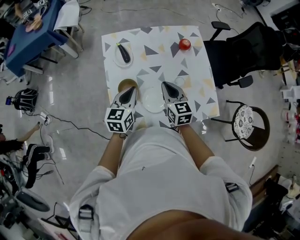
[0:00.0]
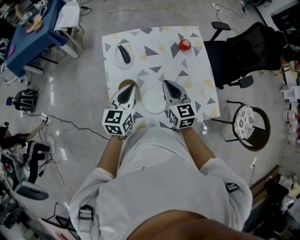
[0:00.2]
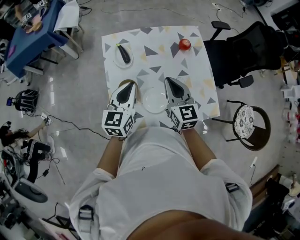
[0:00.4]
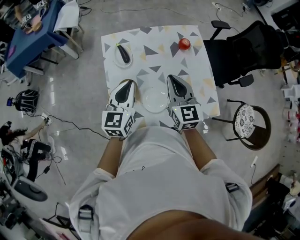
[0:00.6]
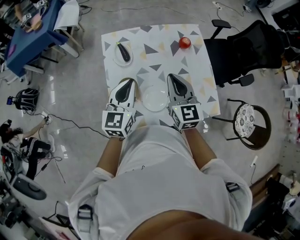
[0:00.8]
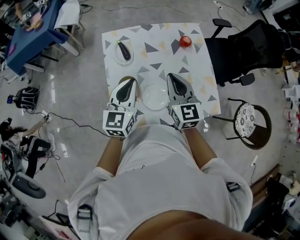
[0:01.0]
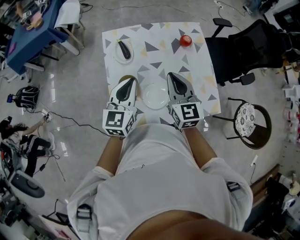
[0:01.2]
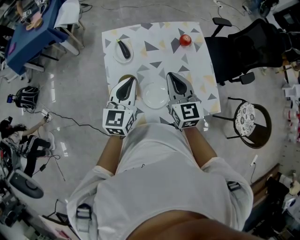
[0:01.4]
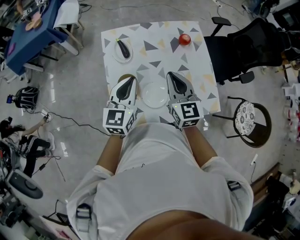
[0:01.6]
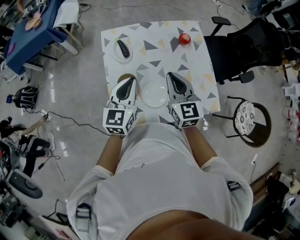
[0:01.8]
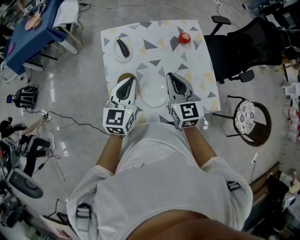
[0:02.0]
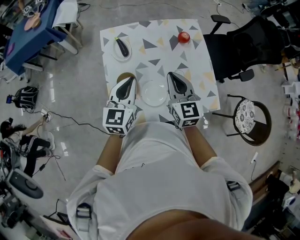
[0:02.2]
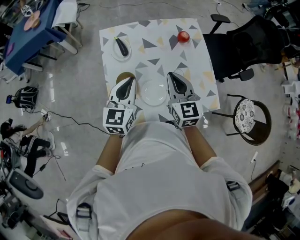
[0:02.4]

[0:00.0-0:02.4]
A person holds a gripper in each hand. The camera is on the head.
0:00.0 to 0:01.2: The two grippers go approximately 10 cm upward.
0:01.2 to 0:02.4: There are only small adjustments of the grippers.

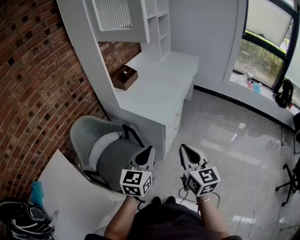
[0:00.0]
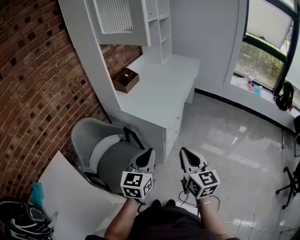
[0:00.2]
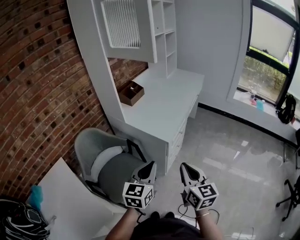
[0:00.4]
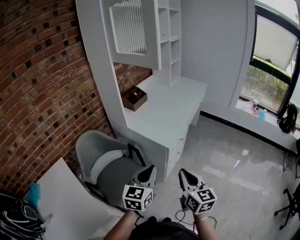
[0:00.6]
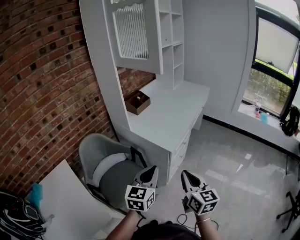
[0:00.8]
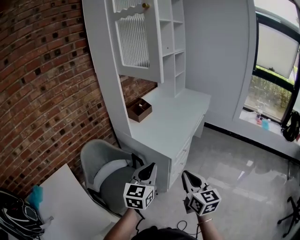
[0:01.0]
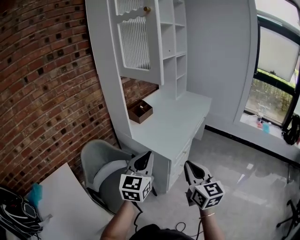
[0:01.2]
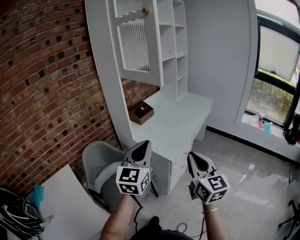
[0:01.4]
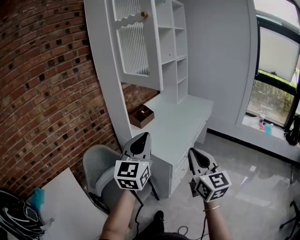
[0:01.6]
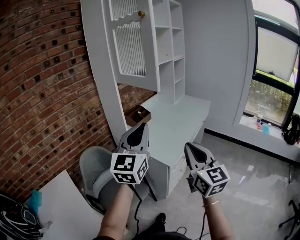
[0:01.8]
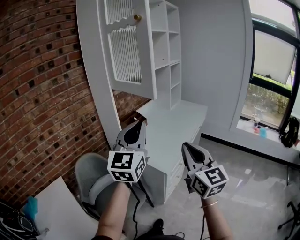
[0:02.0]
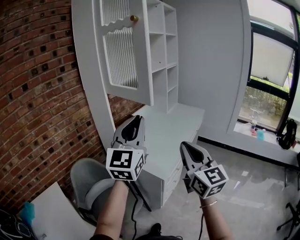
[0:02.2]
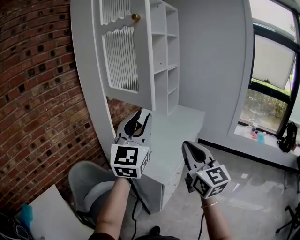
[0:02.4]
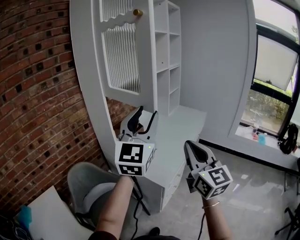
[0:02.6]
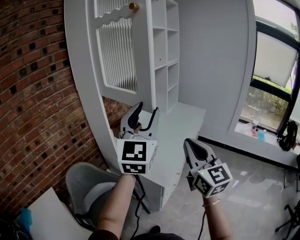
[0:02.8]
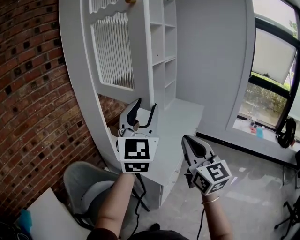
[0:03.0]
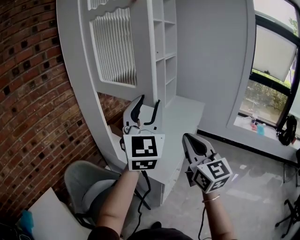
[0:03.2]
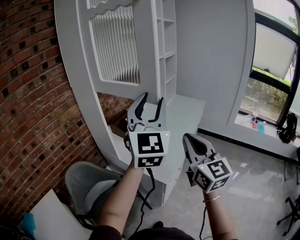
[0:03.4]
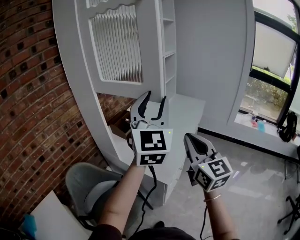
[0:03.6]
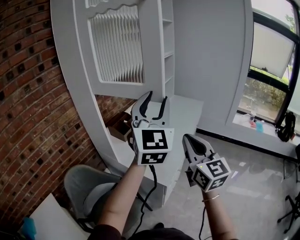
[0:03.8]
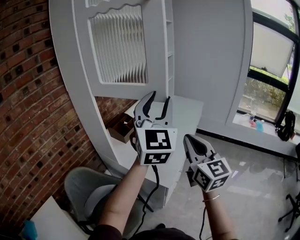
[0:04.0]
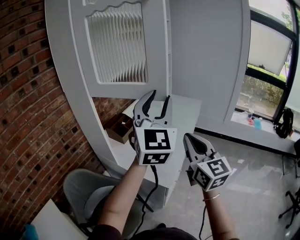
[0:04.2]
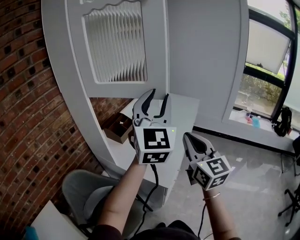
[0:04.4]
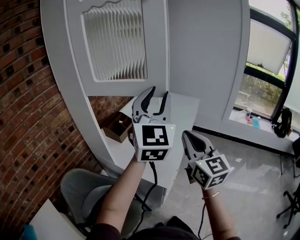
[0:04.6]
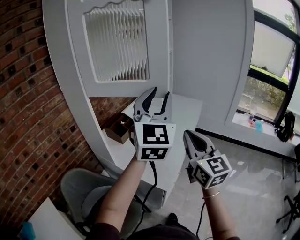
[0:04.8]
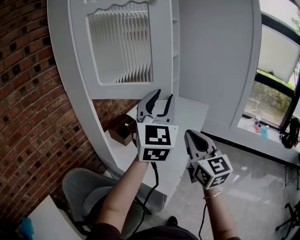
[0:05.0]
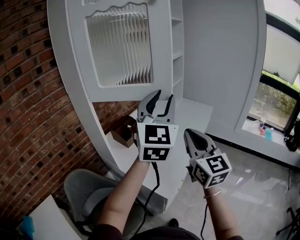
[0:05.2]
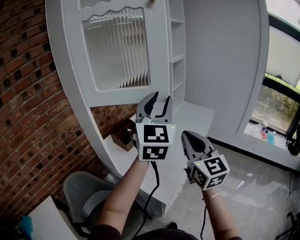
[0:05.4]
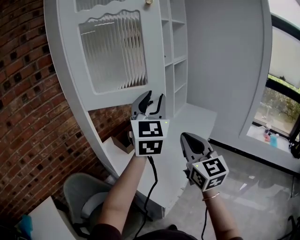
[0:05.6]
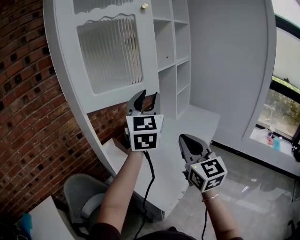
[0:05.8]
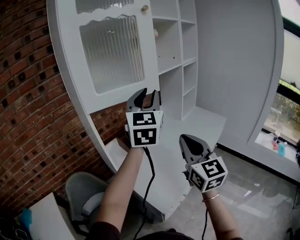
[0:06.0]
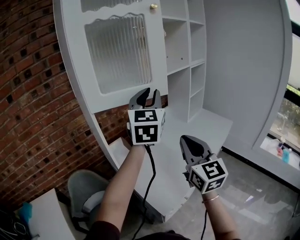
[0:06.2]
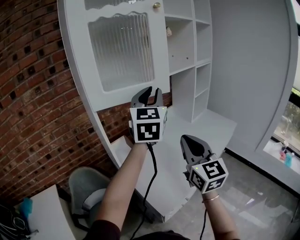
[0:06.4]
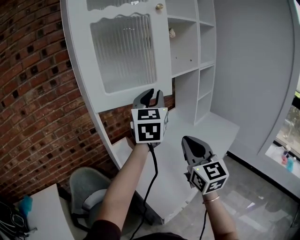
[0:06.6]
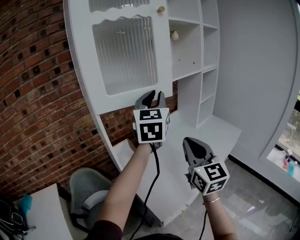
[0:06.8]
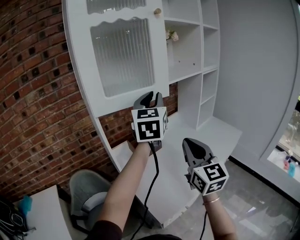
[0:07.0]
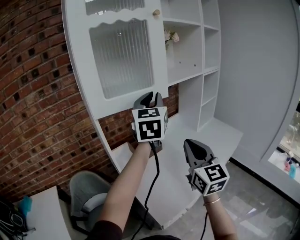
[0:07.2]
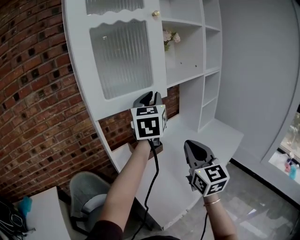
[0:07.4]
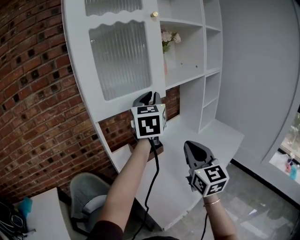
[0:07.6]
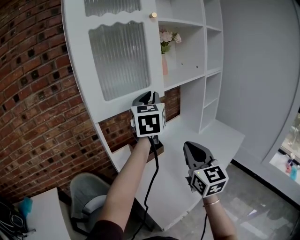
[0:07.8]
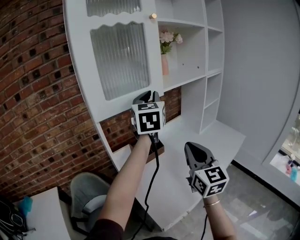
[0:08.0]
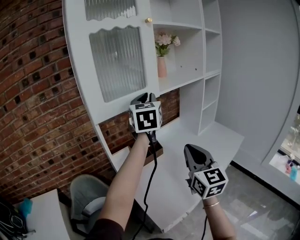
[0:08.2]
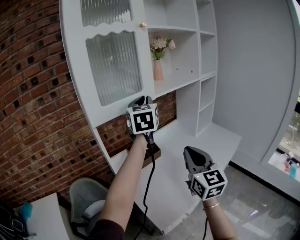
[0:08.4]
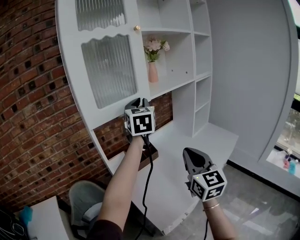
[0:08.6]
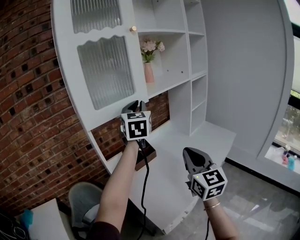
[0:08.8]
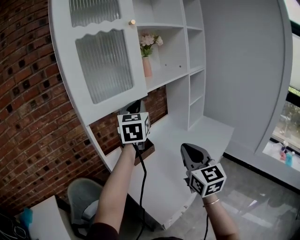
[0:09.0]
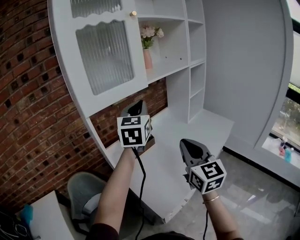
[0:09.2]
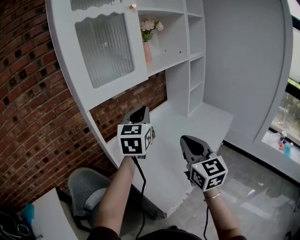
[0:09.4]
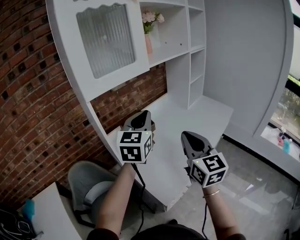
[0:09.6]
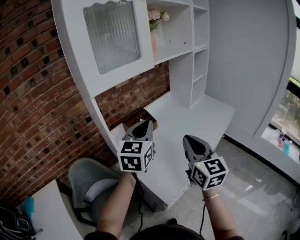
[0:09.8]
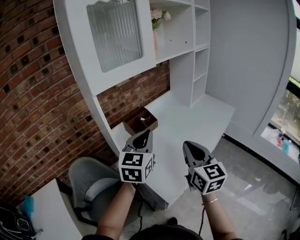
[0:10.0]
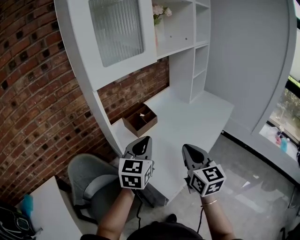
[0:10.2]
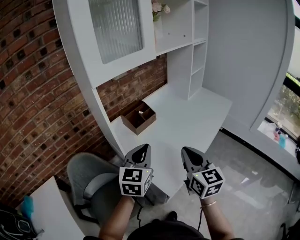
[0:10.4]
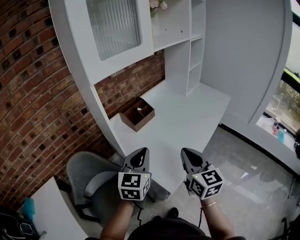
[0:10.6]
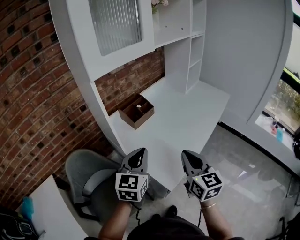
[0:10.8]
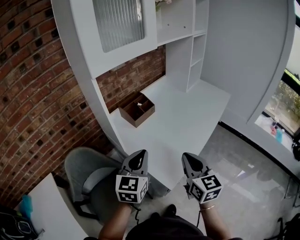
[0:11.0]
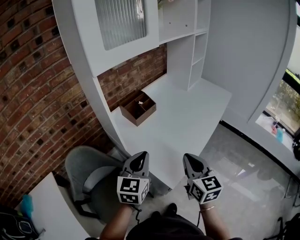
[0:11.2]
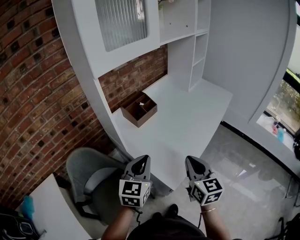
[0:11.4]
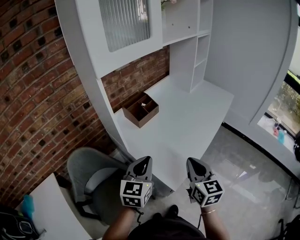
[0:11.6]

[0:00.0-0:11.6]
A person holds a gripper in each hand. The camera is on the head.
0:00.0 to 0:01.4: The grippers both shift upward by about 15 cm. The left gripper rotates some 20 degrees.
0:01.4 to 0:02.8: The grippers both shift forward and upward by approximately 20 cm. The left gripper opens its fingers.
0:02.8 to 0:04.4: Both grippers move forward, some 5 cm.
0:04.4 to 0:05.8: Both grippers travel together forward, approximately 15 cm.
0:05.8 to 0:07.2: The two grippers go some 10 cm forward.
0:07.2 to 0:08.8: The grippers stay close to where they were, moving slightly.
0:08.8 to 0:10.2: The left gripper moves downward and backward, some 30 cm, and swivels some 20 degrees. Meanwhile the right gripper moves downward, backward and to the left, approximately 15 cm.
0:10.2 to 0:11.6: Both grippers travel together downward and backward, roughly 10 cm.

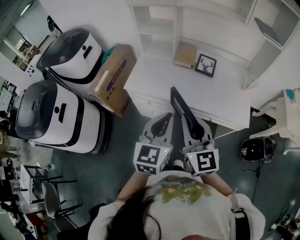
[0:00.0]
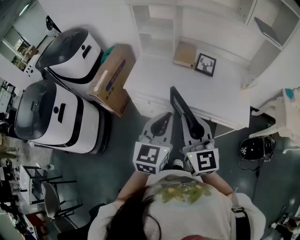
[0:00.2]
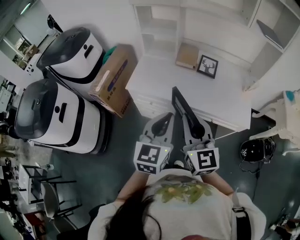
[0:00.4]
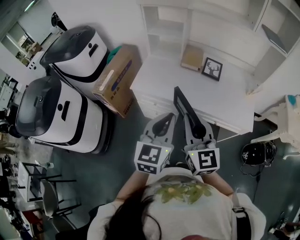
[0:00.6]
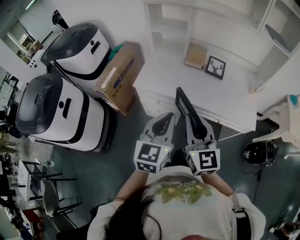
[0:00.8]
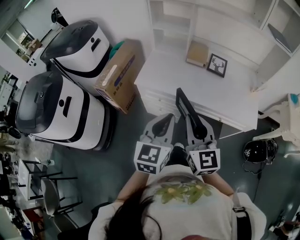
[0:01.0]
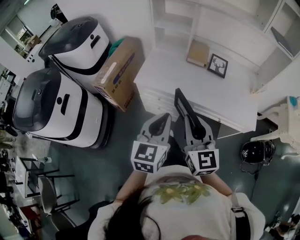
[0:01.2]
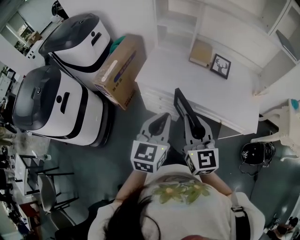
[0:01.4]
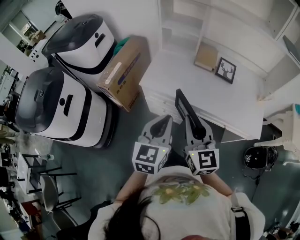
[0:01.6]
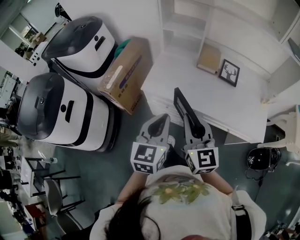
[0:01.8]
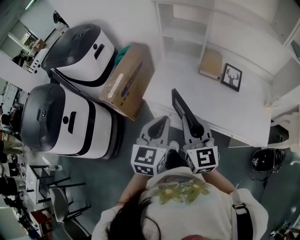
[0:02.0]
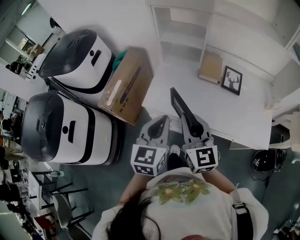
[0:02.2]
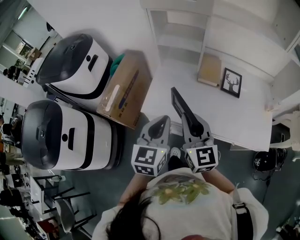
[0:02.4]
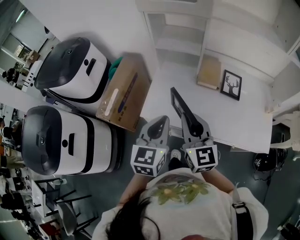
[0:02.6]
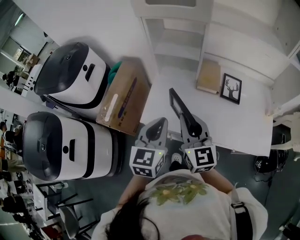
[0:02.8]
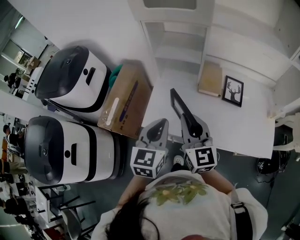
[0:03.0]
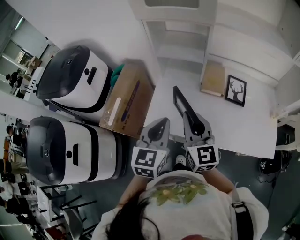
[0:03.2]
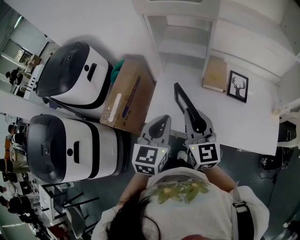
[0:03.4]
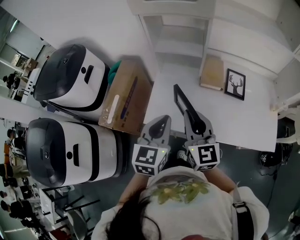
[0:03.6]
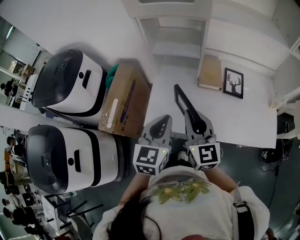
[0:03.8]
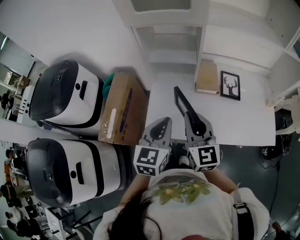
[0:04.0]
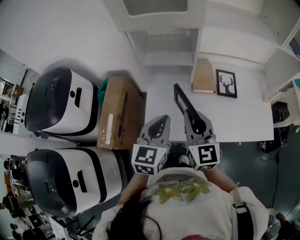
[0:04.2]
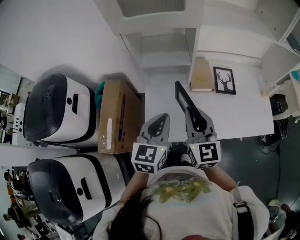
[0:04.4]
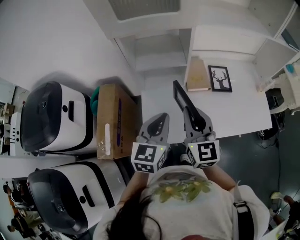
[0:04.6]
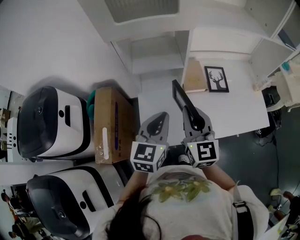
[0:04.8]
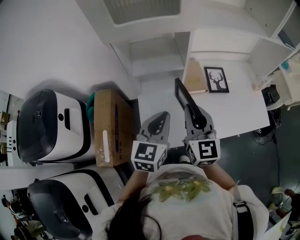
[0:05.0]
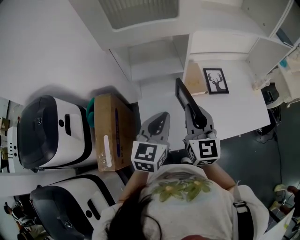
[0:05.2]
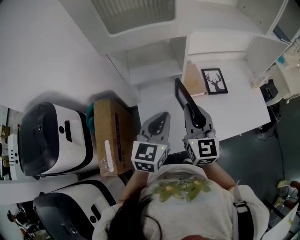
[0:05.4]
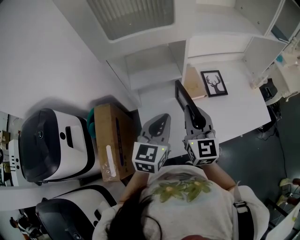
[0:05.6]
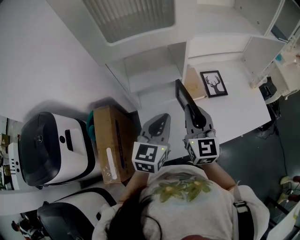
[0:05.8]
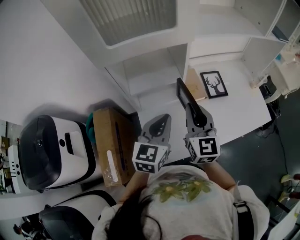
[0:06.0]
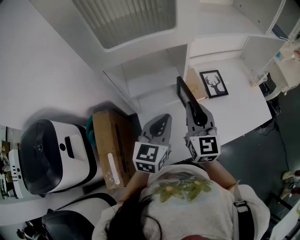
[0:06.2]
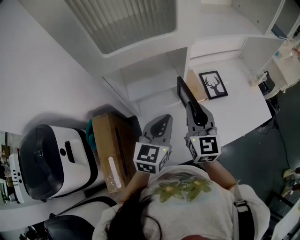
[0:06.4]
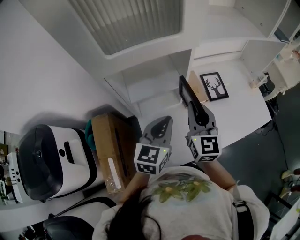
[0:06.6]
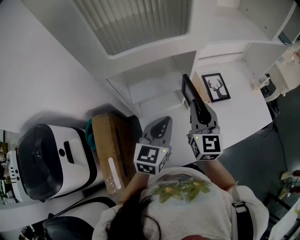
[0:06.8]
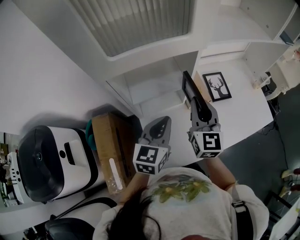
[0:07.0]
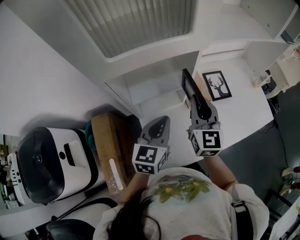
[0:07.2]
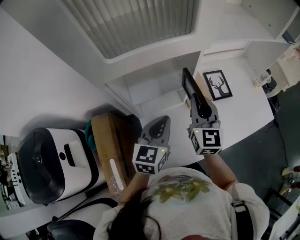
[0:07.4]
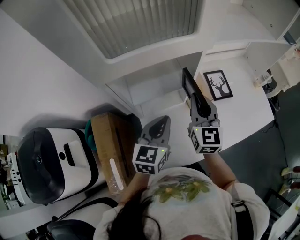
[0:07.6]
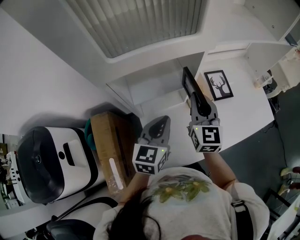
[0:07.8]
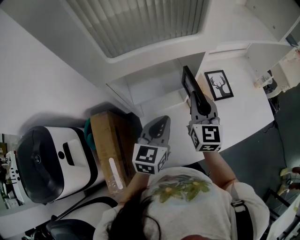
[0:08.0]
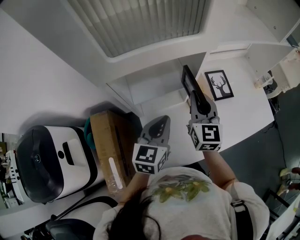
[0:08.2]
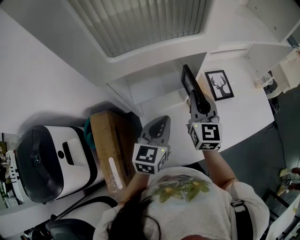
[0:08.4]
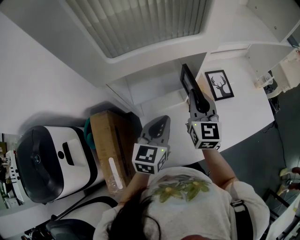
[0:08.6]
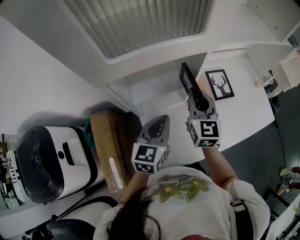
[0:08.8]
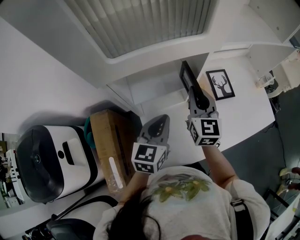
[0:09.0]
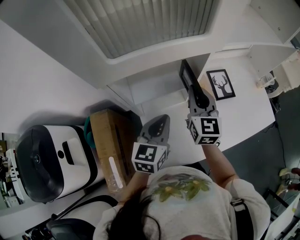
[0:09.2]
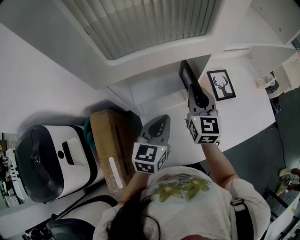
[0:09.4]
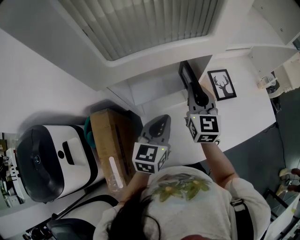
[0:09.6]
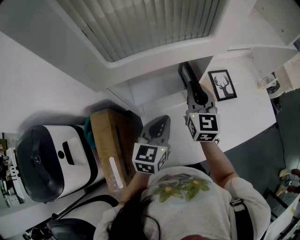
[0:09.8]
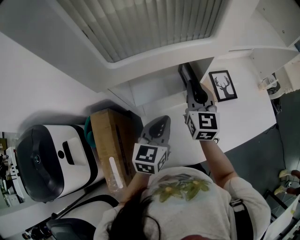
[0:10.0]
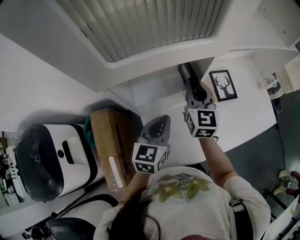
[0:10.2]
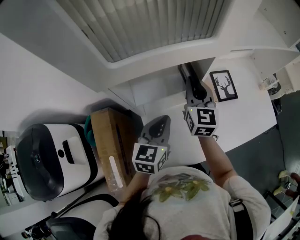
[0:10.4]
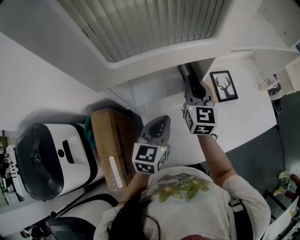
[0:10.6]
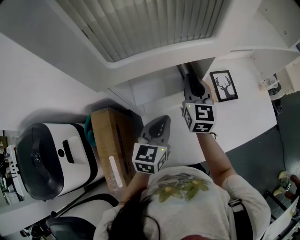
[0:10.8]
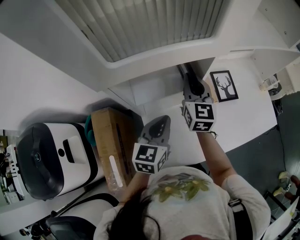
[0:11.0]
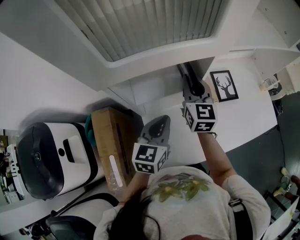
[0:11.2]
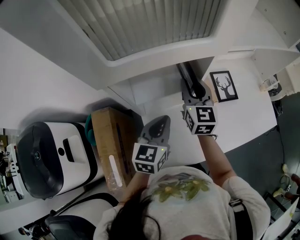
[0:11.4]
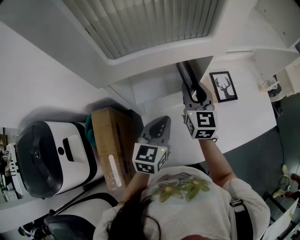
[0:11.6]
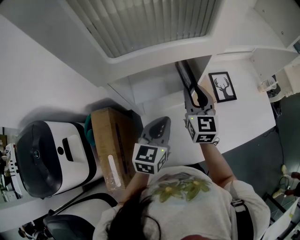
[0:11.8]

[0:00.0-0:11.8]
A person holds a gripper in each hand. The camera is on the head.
0:00.0 to 0:01.4: The left gripper moves to the left, roughly 10 cm, while the right gripper moves to the left and downward, roughly 10 cm.
0:01.4 to 0:03.0: The two grippers go about 30 cm forward.
0:03.0 to 0:04.4: Both grippers travel together forward, some 10 cm.
0:04.4 to 0:06.0: The two grippers go roughly 10 cm forward.
0:06.0 to 0:07.4: The left gripper is displaced forward by about 5 cm. Meanwhile the right gripper moves forward, approximately 10 cm.
0:07.4 to 0:08.8: There are only small adjustments of the grippers.
0:08.8 to 0:10.4: The right gripper is displaced forward by some 5 cm.
0:10.4 to 0:11.8: The grippers make only small movements.
